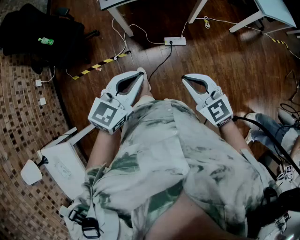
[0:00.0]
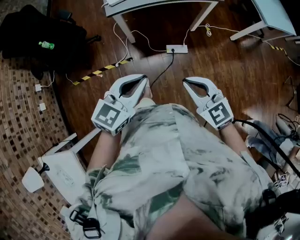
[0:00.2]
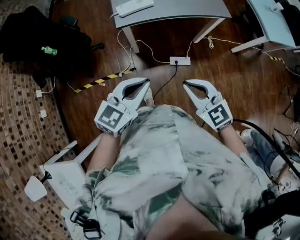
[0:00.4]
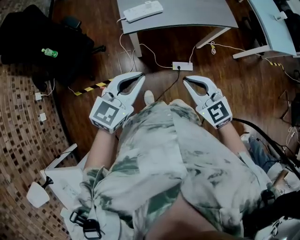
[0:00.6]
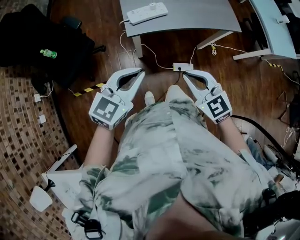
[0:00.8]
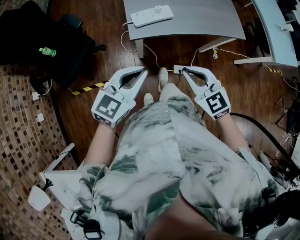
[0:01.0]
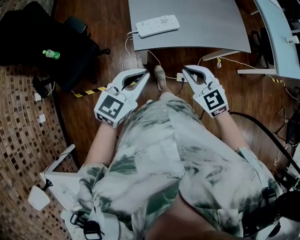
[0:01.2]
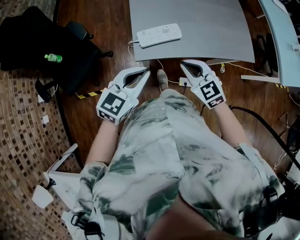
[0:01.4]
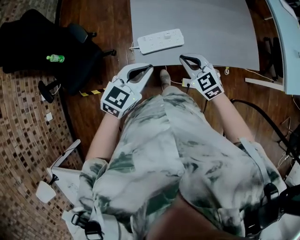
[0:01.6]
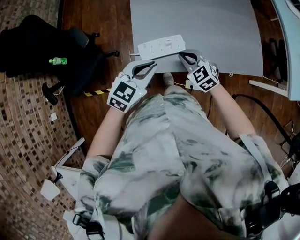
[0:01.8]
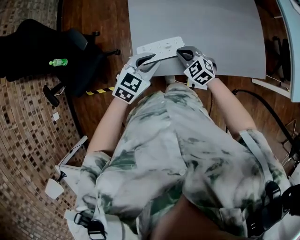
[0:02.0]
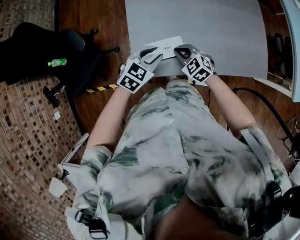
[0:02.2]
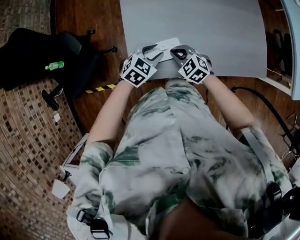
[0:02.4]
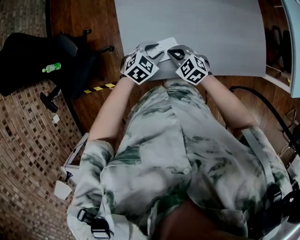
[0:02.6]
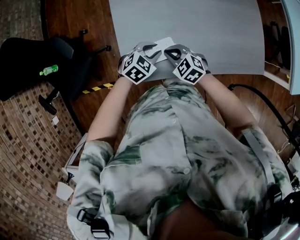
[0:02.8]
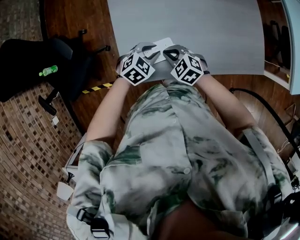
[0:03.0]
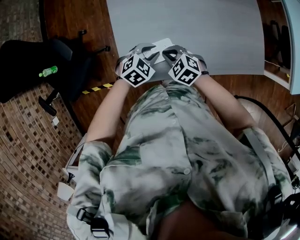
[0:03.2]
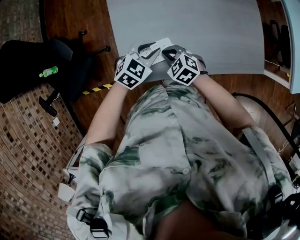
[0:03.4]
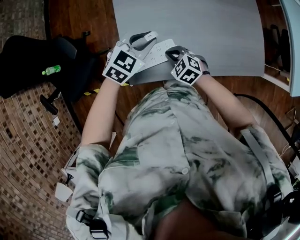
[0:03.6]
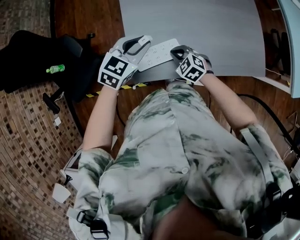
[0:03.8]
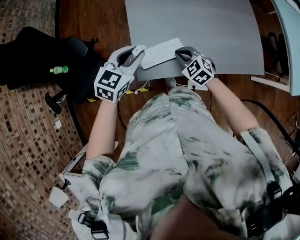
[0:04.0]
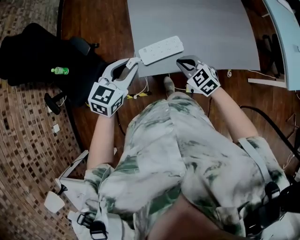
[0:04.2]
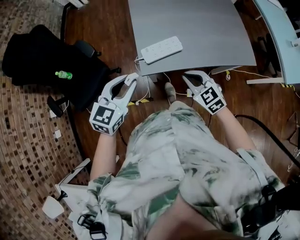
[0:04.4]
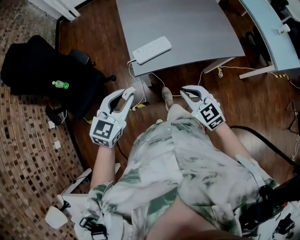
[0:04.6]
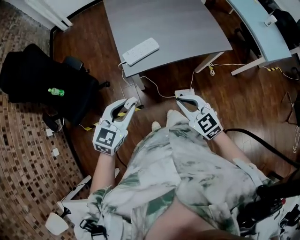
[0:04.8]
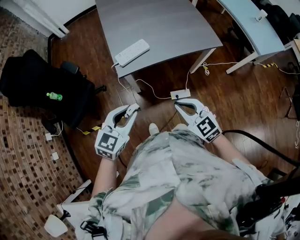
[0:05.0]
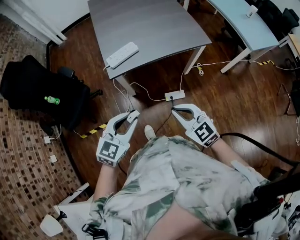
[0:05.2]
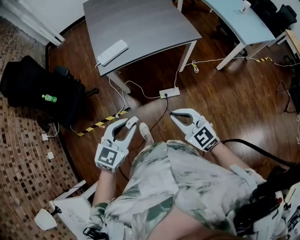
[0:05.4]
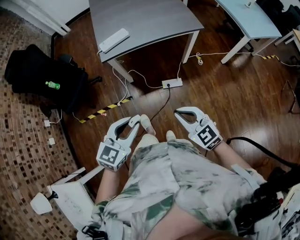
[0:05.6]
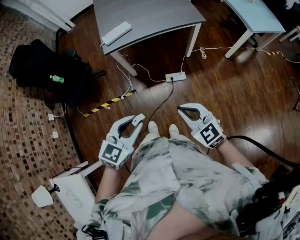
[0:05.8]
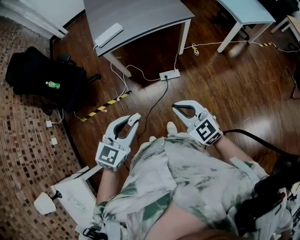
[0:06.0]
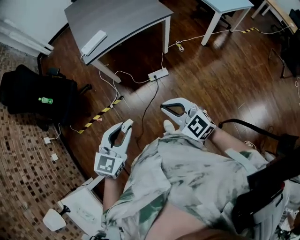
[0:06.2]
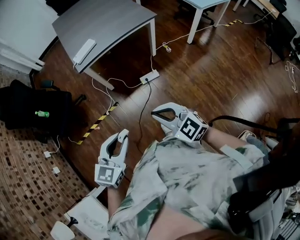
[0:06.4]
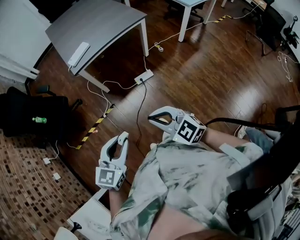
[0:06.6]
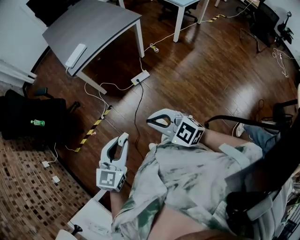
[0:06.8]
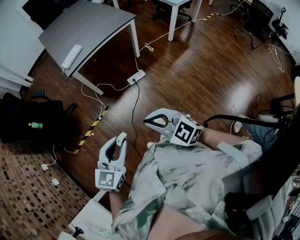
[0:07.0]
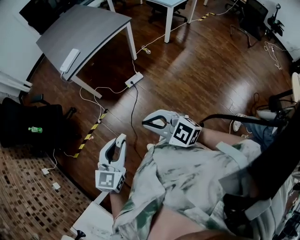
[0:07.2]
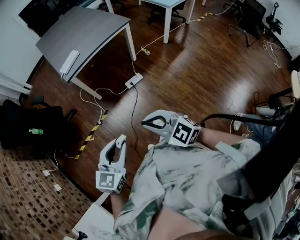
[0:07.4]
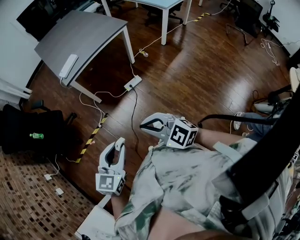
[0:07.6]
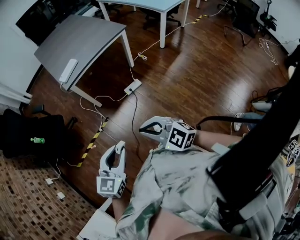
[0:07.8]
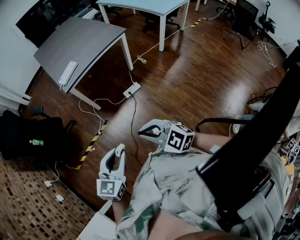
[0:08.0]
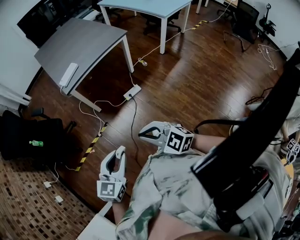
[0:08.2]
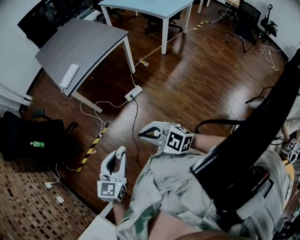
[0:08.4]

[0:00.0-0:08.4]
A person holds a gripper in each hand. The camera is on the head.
0:00.0 to 0:01.4: Both grippers travel together forward, about 40 cm.
0:01.4 to 0:02.8: The left gripper travels downward, forward and to the right by about 30 cm, angles its fingers downward, by about 30 degrees, and opens its fingers, while the right gripper is displaced downward and forward by roughly 25 cm, and turns by roughly 20 degrees.
0:02.8 to 0:04.2: The left gripper goes roughly 20 cm upward, and swivels approximately 30 degrees; the right gripper shifts roughly 10 cm upward.
0:04.2 to 0:05.6: Both grippers are carried backward, about 50 cm. The right gripper turns by roughly 20 degrees.
0:05.6 to 0:07.0: The right gripper travels backward and to the left by about 25 cm. The left gripper shifts some 20 cm backward.
0:07.0 to 0:08.4: The grippers make only small movements.

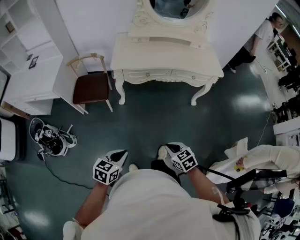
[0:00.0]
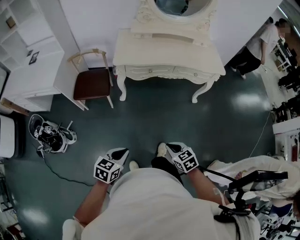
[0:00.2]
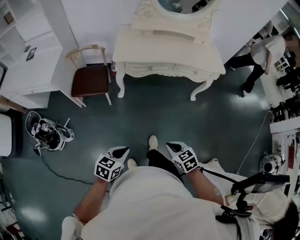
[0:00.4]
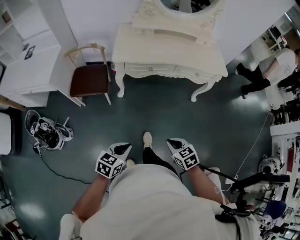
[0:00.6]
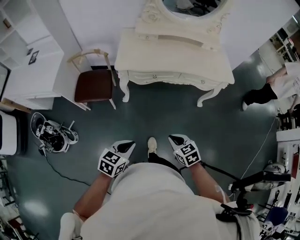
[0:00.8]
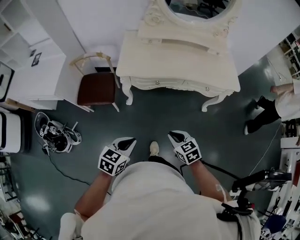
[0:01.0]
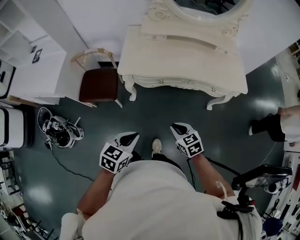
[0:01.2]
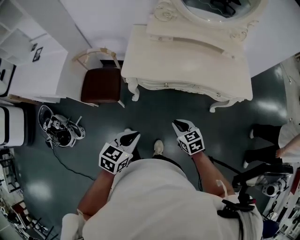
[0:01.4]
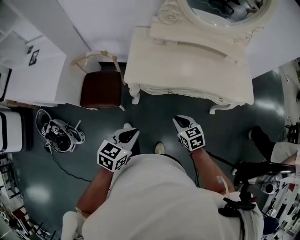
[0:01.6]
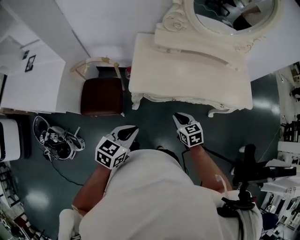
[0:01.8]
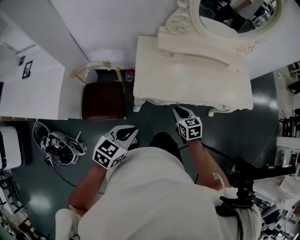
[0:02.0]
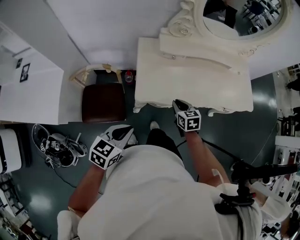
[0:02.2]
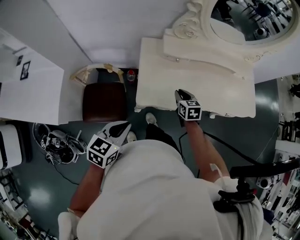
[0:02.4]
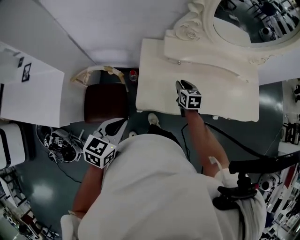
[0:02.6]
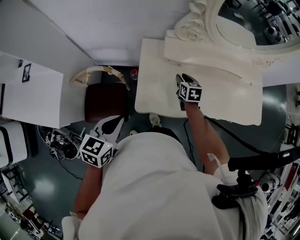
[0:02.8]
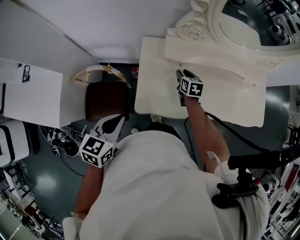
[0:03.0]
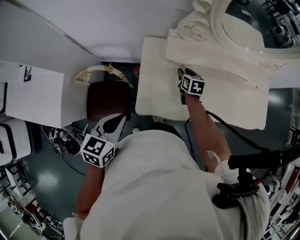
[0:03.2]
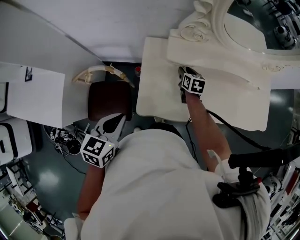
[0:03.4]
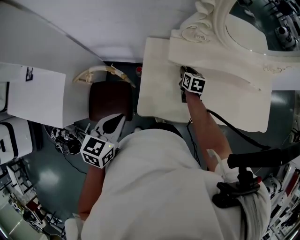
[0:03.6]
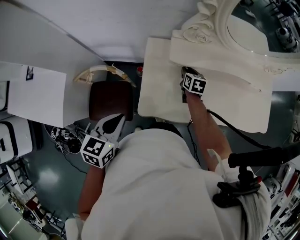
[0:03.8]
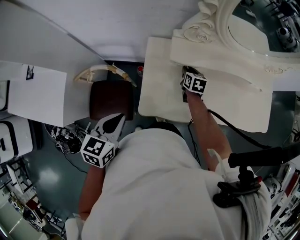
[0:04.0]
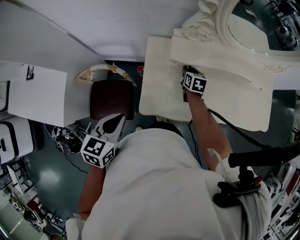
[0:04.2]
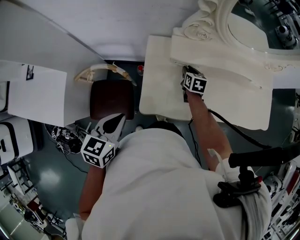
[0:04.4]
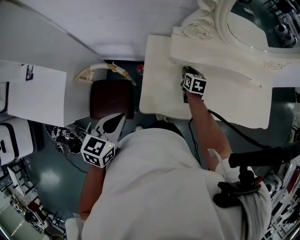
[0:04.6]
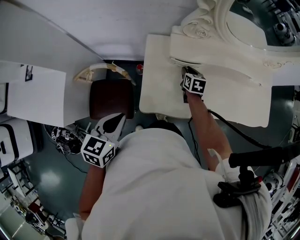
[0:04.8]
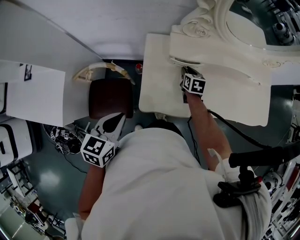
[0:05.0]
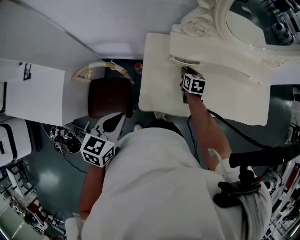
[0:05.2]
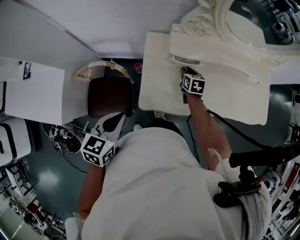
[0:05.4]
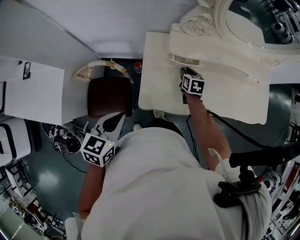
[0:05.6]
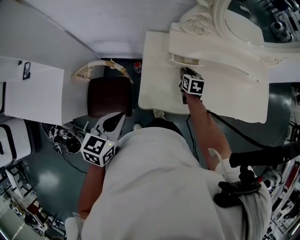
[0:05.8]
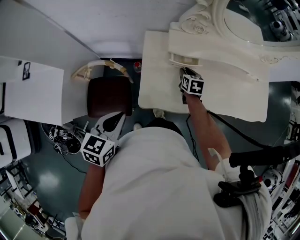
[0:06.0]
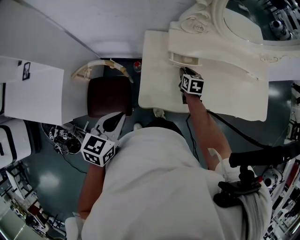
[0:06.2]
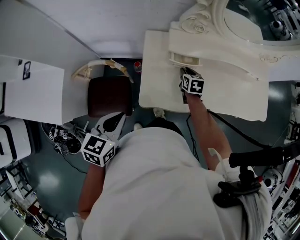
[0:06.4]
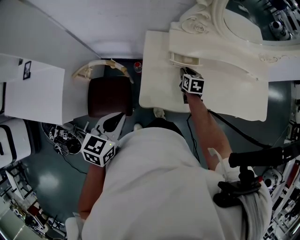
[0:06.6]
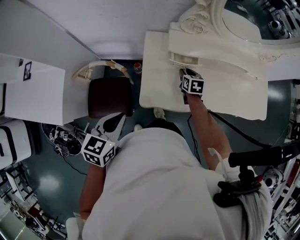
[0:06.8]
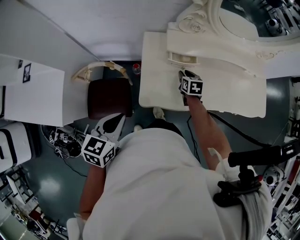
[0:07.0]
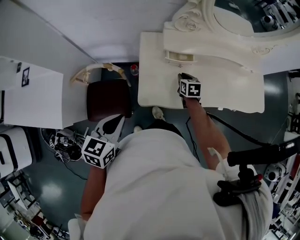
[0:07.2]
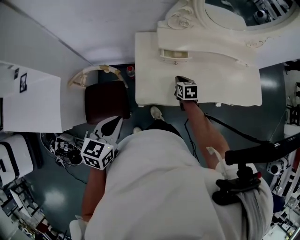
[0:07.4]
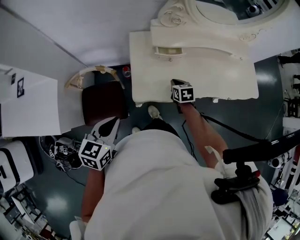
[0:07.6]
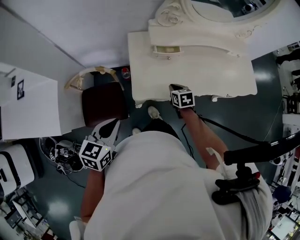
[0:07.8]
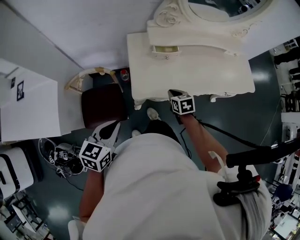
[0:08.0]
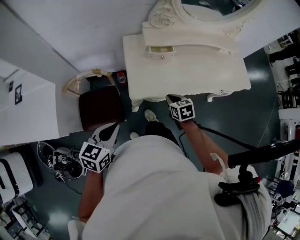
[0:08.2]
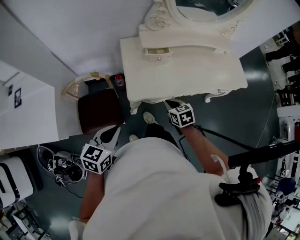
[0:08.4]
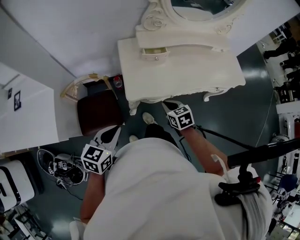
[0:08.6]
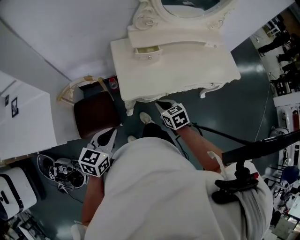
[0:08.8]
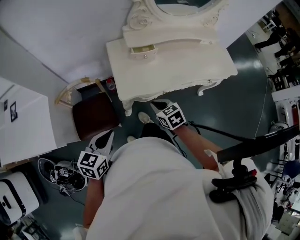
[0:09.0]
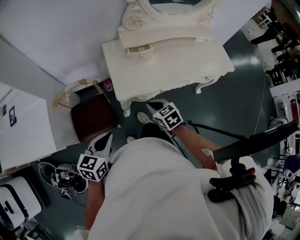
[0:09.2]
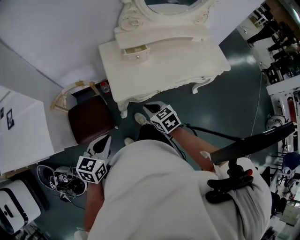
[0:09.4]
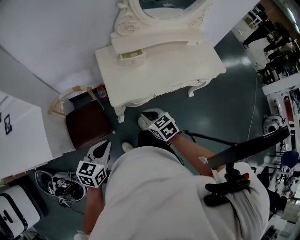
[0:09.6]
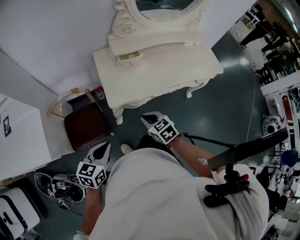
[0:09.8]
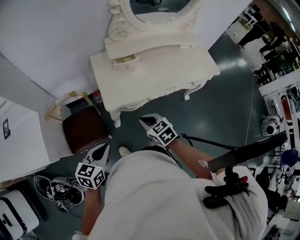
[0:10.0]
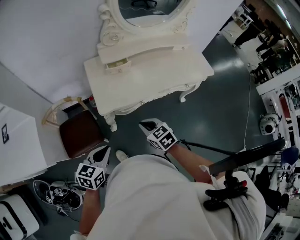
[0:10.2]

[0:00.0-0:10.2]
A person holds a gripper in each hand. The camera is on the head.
0:00.0 to 0:01.4: Both grippers travel together forward, roughly 30 cm.
0:01.4 to 0:03.0: Both grippers are carried forward and to the left, some 50 cm. The right gripper swivels some 30 degrees, and opens.
0:03.0 to 0:05.8: The grippers stay close to where they were, moving slightly.
0:05.8 to 0:07.2: The right gripper heads backward, covering some 5 cm.
0:07.2 to 0:08.8: The left gripper goes some 10 cm backward. Meanwhile the right gripper is displaced backward by about 25 cm.
0:08.8 to 0:10.2: The right gripper travels backward by about 10 cm, while the left gripper is displaced to the right and backward by approximately 10 cm.

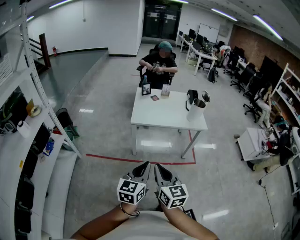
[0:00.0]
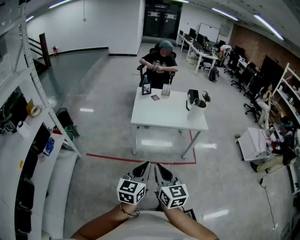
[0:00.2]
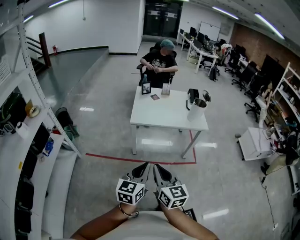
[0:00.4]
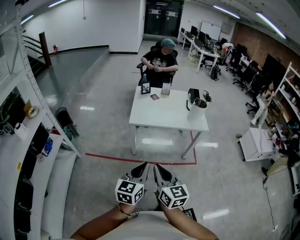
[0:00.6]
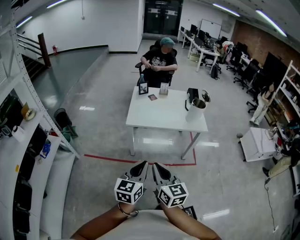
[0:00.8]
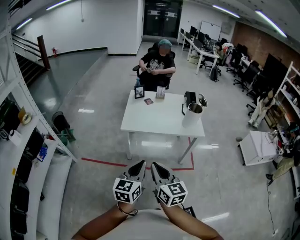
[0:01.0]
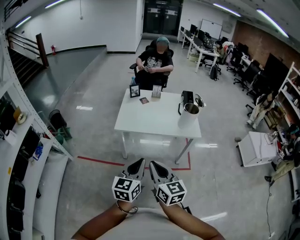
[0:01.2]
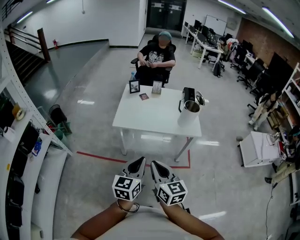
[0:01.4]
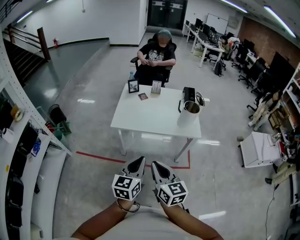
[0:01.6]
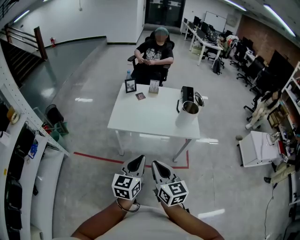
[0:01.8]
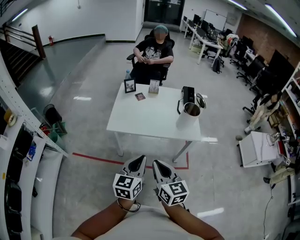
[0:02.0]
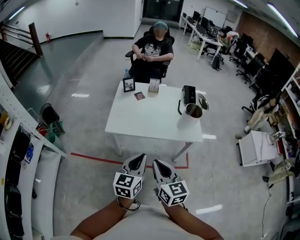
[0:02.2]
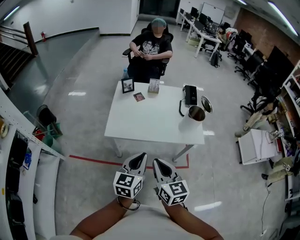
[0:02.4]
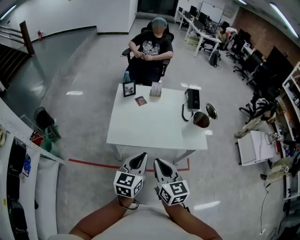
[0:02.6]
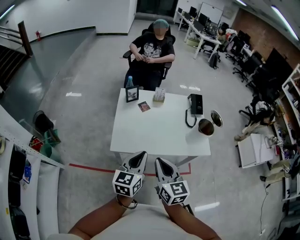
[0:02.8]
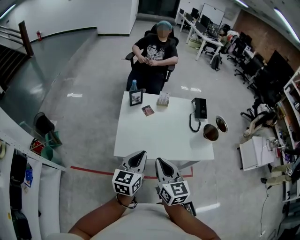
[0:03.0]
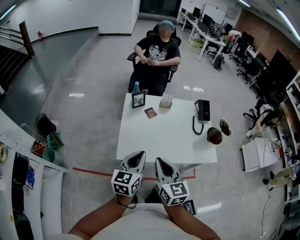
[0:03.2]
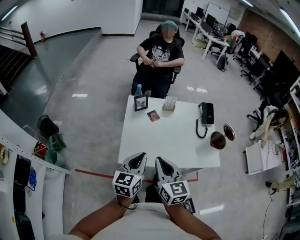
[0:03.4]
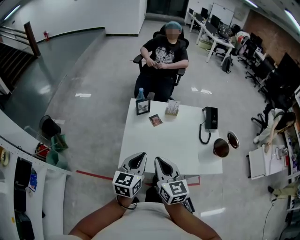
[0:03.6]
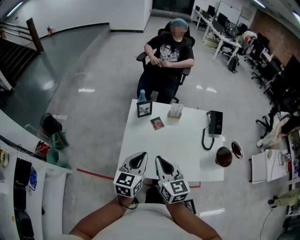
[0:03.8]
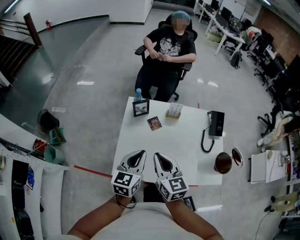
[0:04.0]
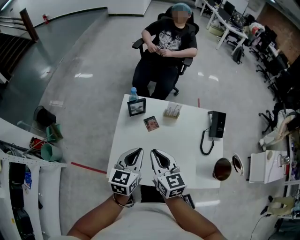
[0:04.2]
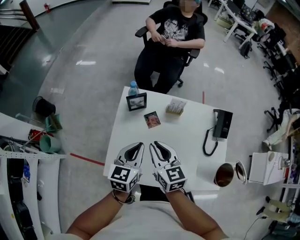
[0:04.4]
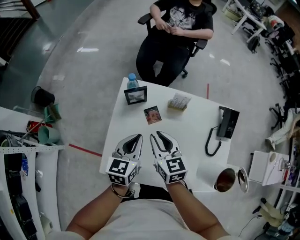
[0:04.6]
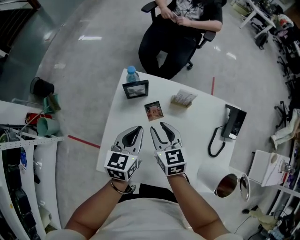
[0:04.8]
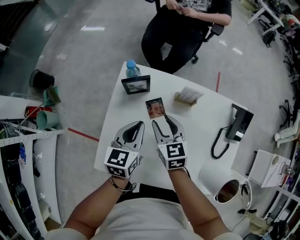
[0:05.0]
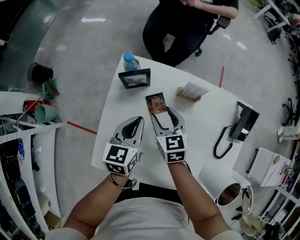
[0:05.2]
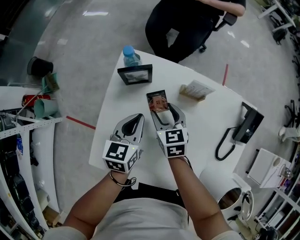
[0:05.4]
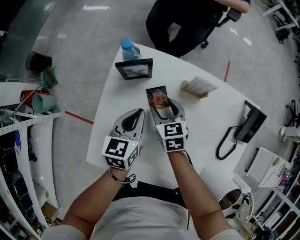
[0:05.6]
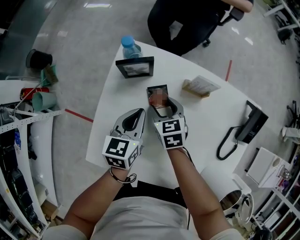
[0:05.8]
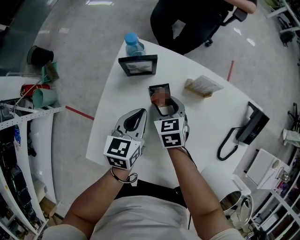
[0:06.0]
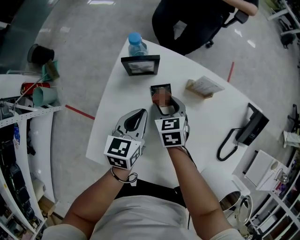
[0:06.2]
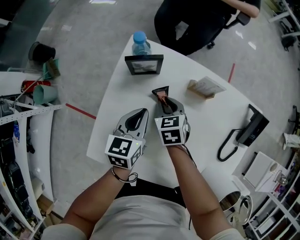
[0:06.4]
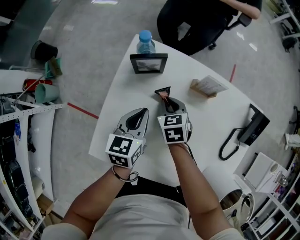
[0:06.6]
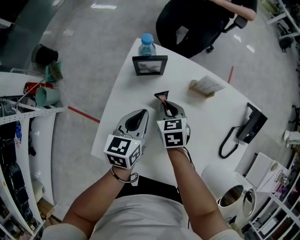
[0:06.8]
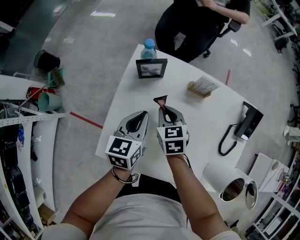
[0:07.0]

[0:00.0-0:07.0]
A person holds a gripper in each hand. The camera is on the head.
0:00.0 to 0:01.4: The two grippers go some 20 cm forward and to the right.
0:01.4 to 0:02.8: Both grippers travel together forward, roughly 30 cm.
0:02.8 to 0:04.2: Both grippers move forward, some 30 cm.
0:04.2 to 0:05.6: Both grippers travel together downward and forward, about 30 cm. The right gripper changes its angle by about 30 degrees, and opens up.
0:05.6 to 0:07.0: The right gripper shifts by some 5 cm, and closes its fingers, while the left gripper moves approximately 5 cm.
